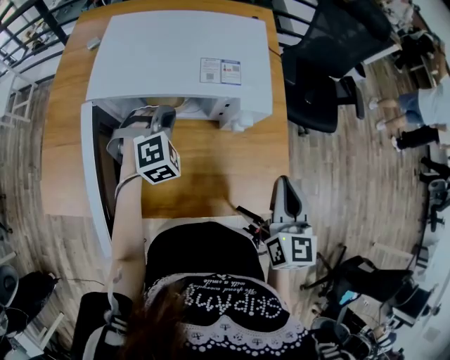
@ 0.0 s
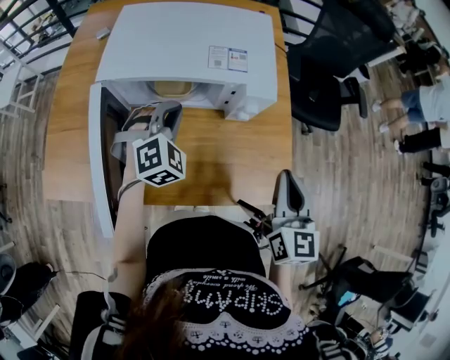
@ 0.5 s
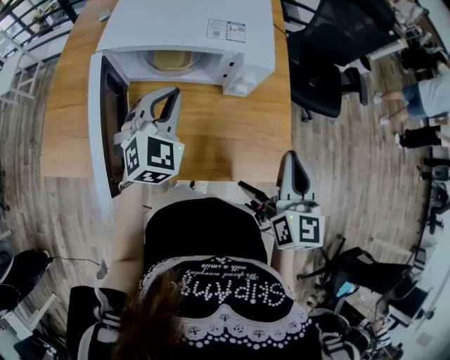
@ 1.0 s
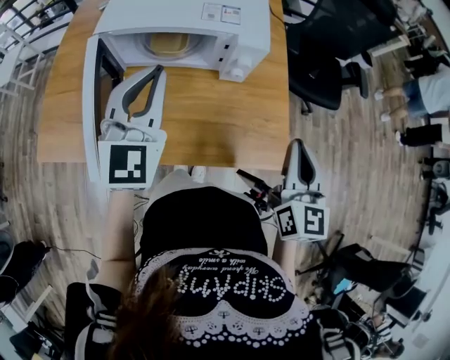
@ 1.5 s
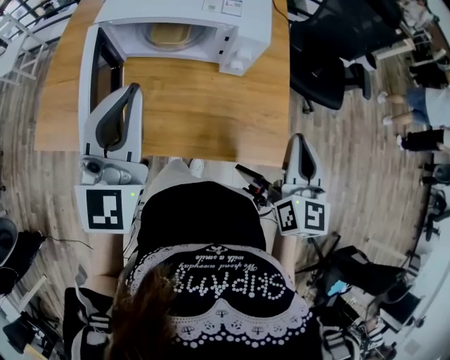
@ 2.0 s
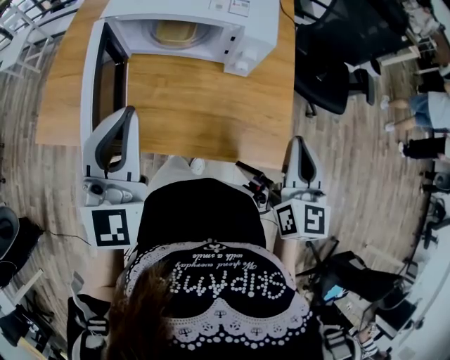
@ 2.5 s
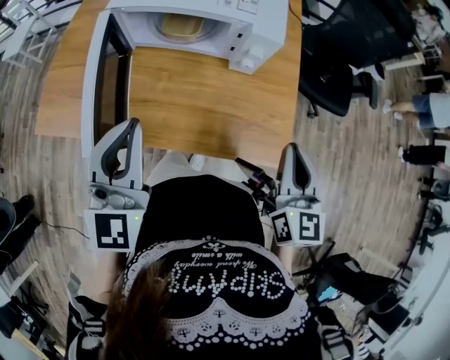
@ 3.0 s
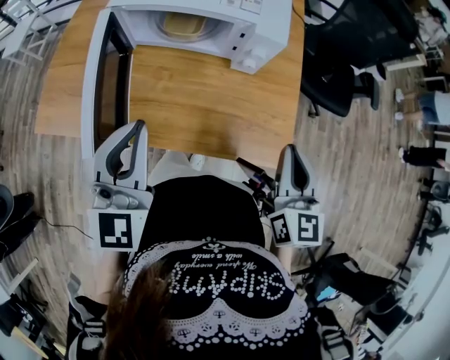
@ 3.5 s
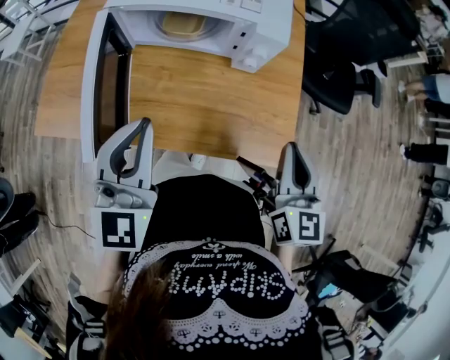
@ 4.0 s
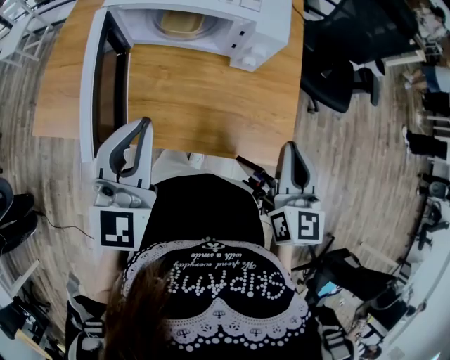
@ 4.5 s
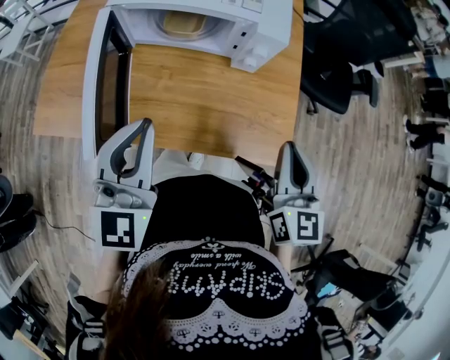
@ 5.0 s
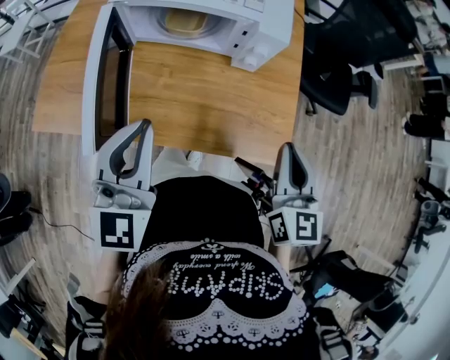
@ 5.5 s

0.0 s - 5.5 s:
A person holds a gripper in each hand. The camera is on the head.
0.0 s - 2.0 s: The left gripper travels upward and backward by roughly 30 cm, and angles its fingers upward, by roughly 50 degrees. The right gripper goes about 10 cm backward and to the right.
2.0 s - 3.5 s: The left gripper heads downward and backward, covering some 10 cm.
3.5 s - 5.5 s: Both grippers stay about where they are.

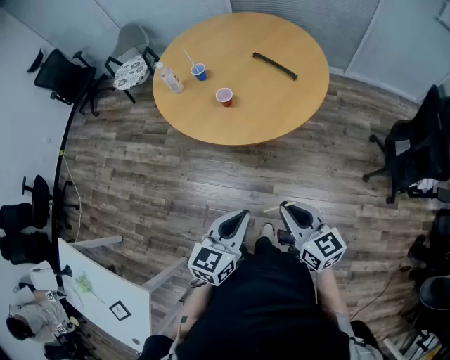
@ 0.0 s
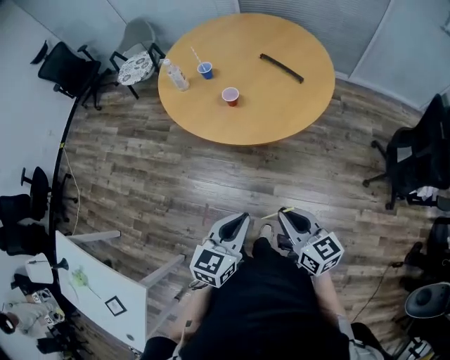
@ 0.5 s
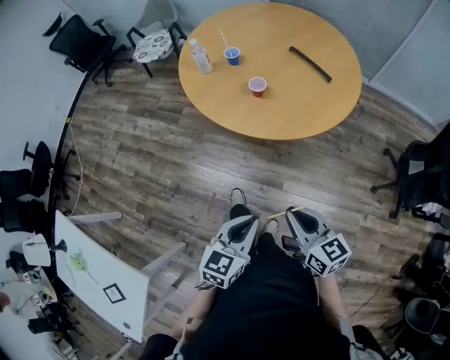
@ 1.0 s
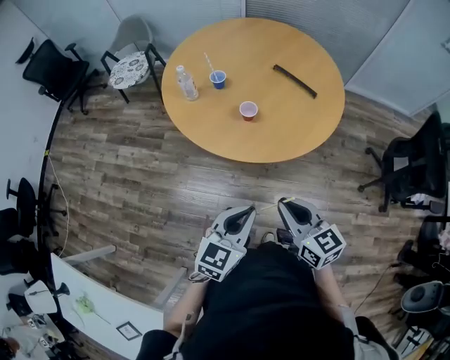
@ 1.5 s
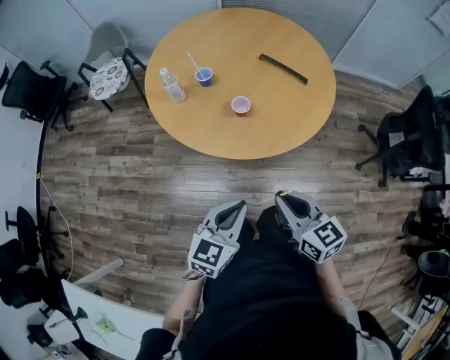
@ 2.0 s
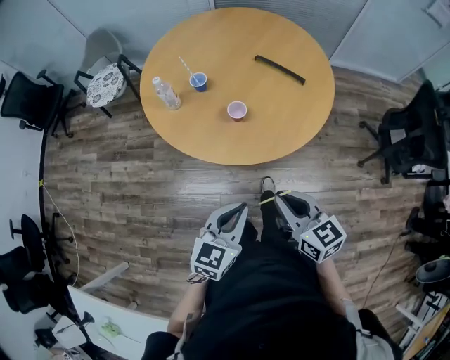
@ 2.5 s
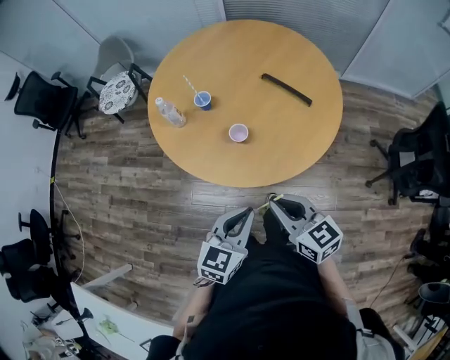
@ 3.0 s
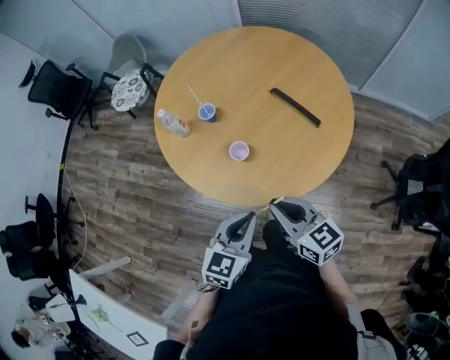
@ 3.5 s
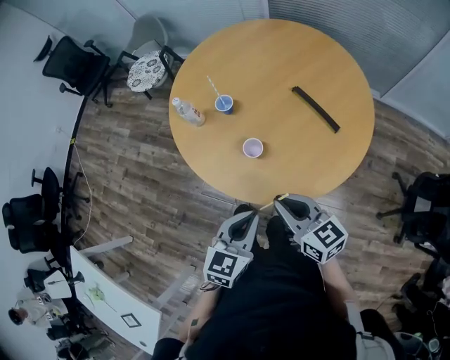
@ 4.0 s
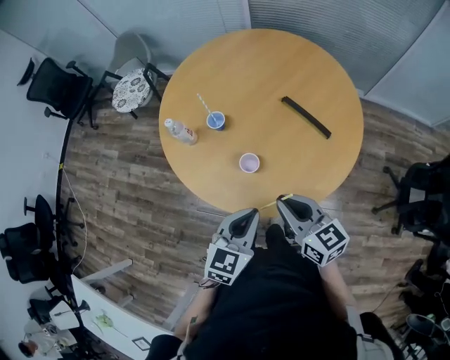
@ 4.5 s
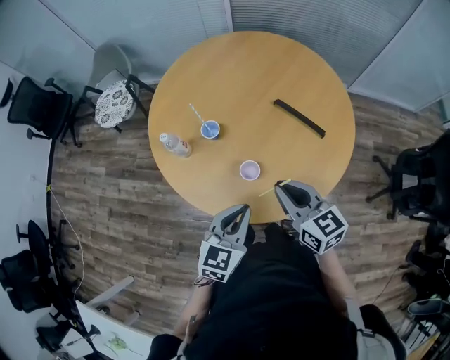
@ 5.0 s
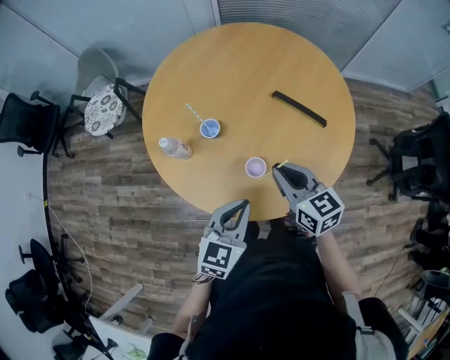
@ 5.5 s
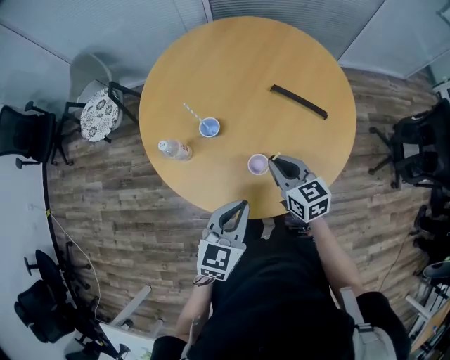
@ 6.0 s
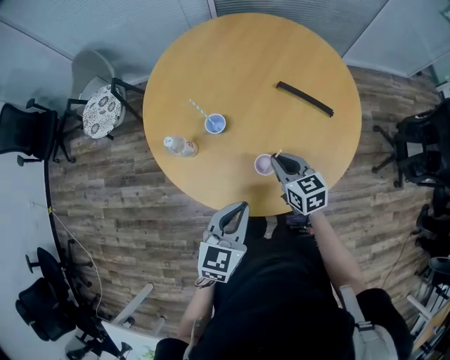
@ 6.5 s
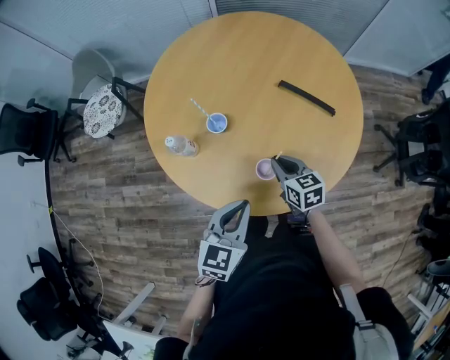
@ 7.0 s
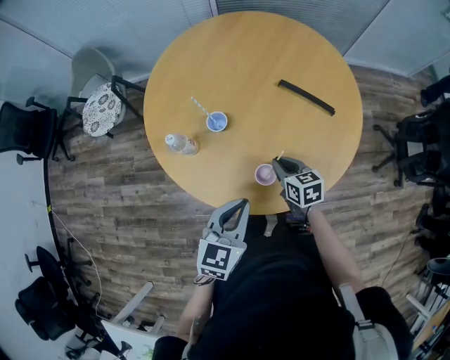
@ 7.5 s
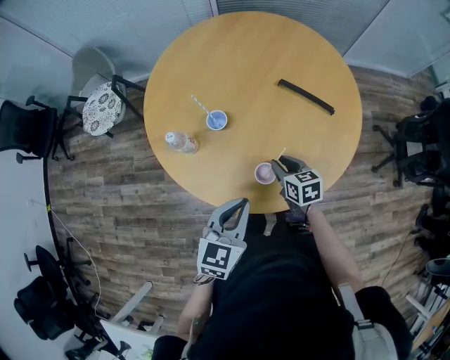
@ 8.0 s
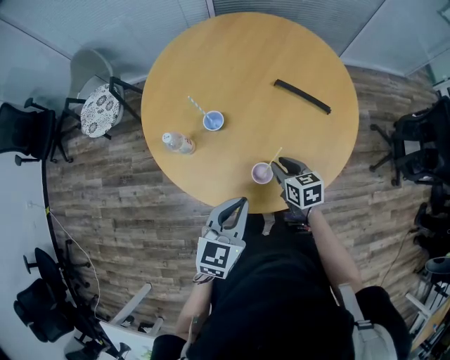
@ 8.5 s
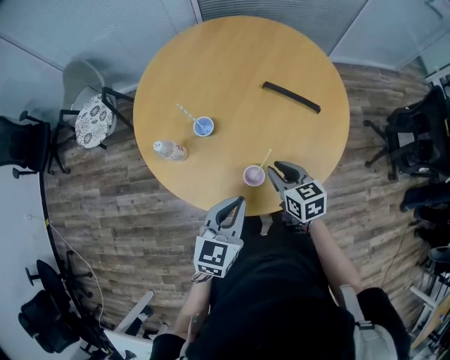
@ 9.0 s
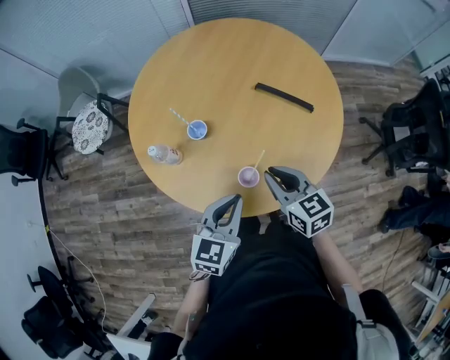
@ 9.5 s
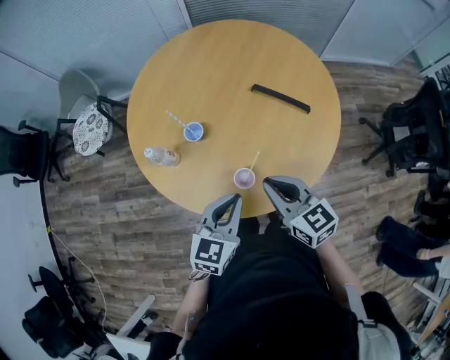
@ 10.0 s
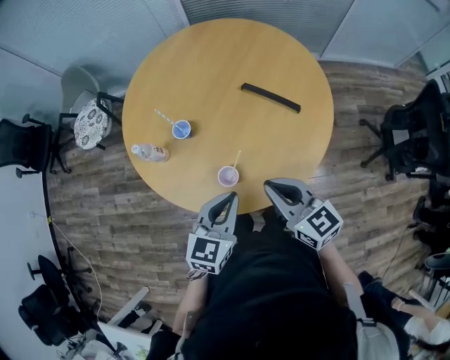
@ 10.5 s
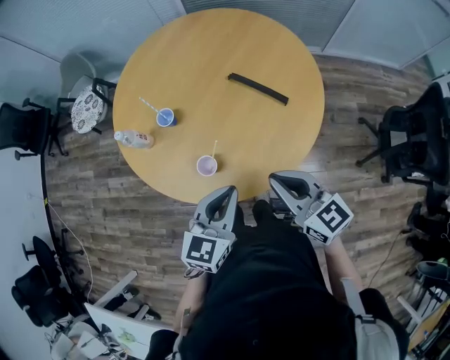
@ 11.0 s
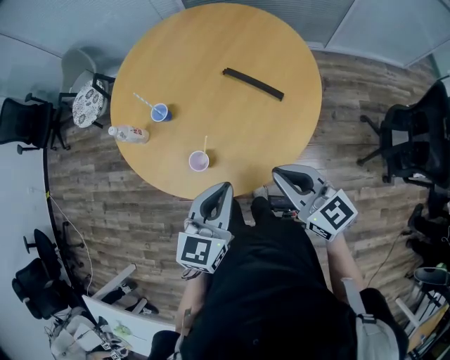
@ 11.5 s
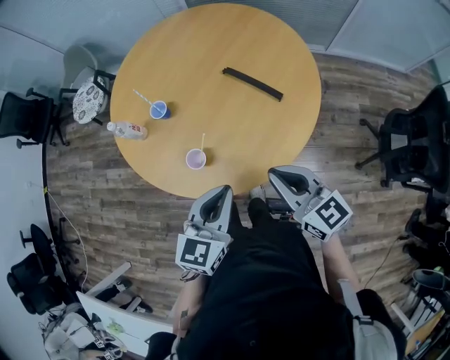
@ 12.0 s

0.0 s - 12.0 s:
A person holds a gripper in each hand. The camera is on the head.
0.0 s - 2.0 s: Both grippers move to the left and forward, approximately 20 cm.
2.0 s - 4.0 s: The right gripper moves forward, roughly 20 cm, and swivels roughly 20 degrees, while the left gripper goes about 20 cm forward and to the right, and rotates some 20 degrees.
4.0 s - 6.0 s: The left gripper moves approximately 15 cm, and changes its angle by roughly 20 degrees. Meanwhile the right gripper moves roughly 20 cm, and turns by some 30 degrees.
6.0 s - 8.0 s: The right gripper travels downward by roughly 10 cm.
8.0 s - 10.0 s: The right gripper heads upward, covering about 20 cm, and turns by roughly 20 degrees.
10.0 s - 12.0 s: The two grippers go about 15 cm to the right.

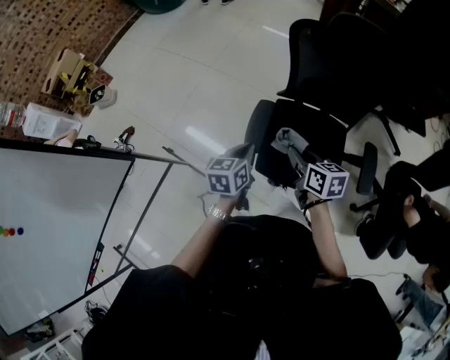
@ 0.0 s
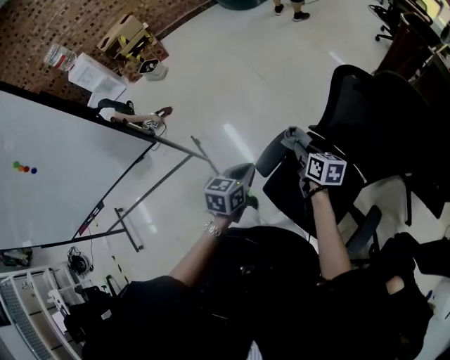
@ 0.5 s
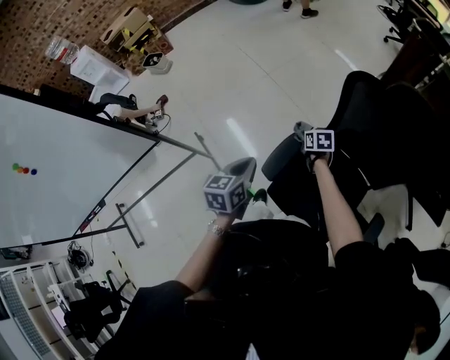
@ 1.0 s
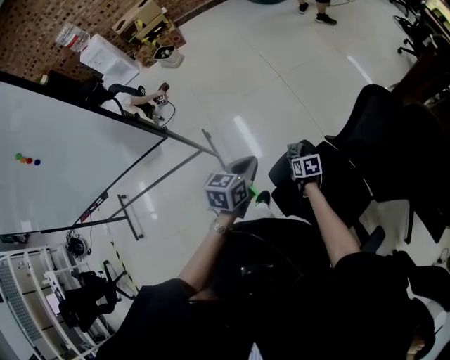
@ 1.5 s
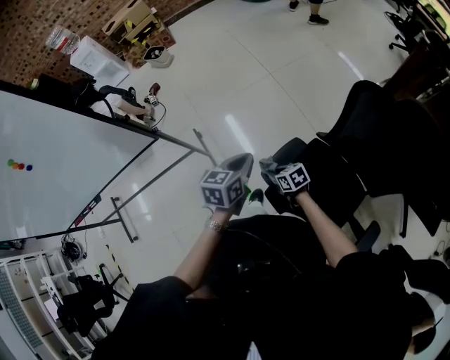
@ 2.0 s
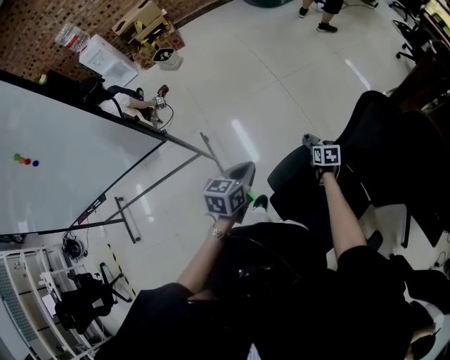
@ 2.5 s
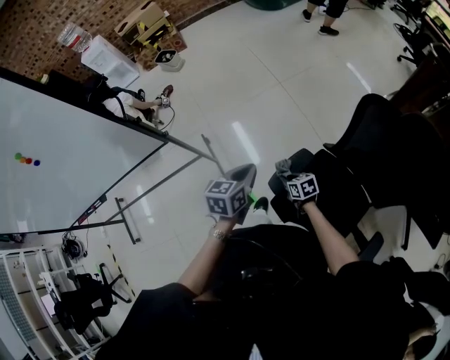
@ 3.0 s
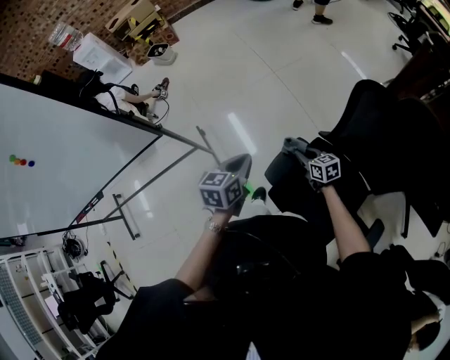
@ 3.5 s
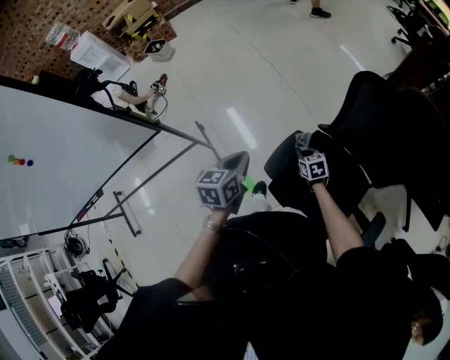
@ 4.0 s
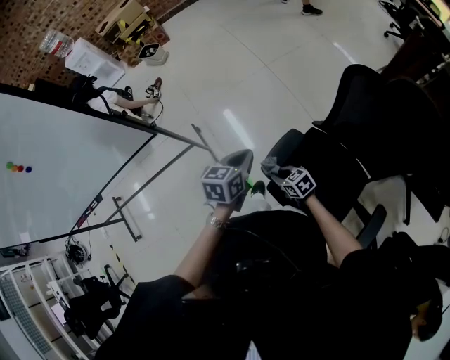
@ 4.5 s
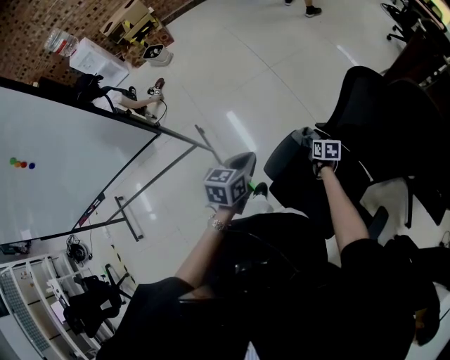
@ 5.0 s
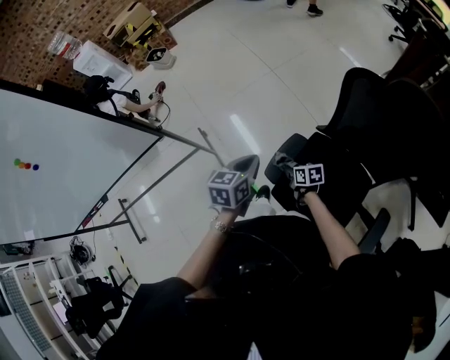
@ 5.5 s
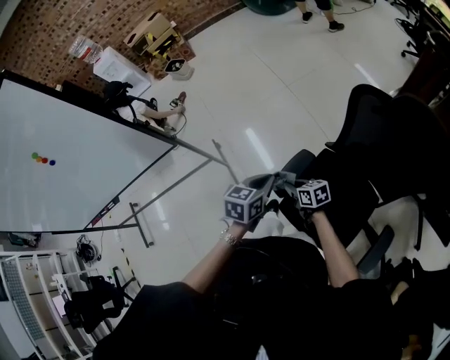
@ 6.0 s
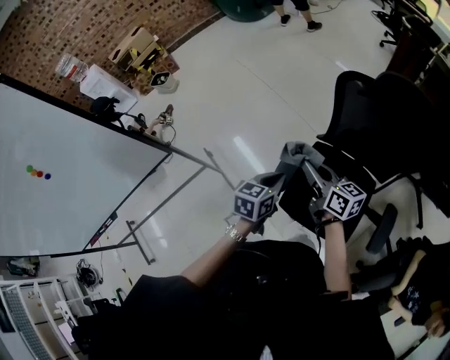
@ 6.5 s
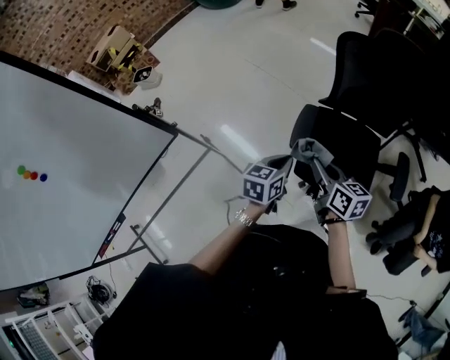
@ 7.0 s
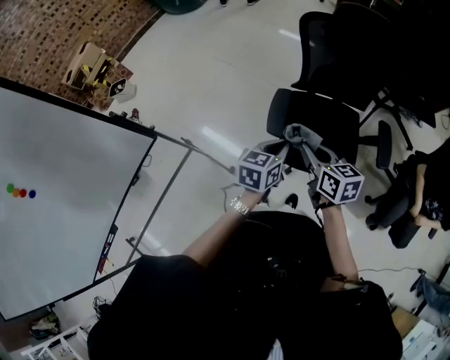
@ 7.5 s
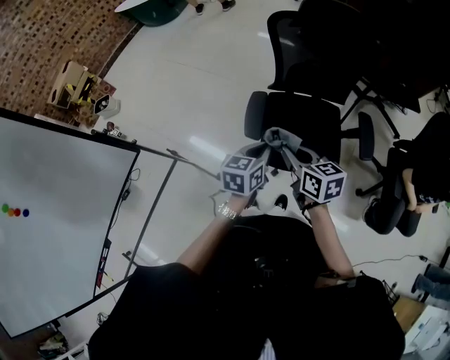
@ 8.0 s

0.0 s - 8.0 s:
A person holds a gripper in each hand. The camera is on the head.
0.0 s - 2.0 s: The right gripper is displaced downward by approximately 20 cm, and turns by approximately 60 degrees. The left gripper changes place by some 5 cm, and rotates roughly 20 degrees.
2.0 s - 4.0 s: The right gripper goes left and right, about 20 cm each way, reversing 2 times, and rotates roughly 30 degrees.
4.0 s - 6.0 s: The right gripper goes left and right, some 20 cm each way, reversing 2 times, and swivels roughly 30 degrees. Meanwhile the left gripper goes about 5 cm to the right.
6.0 s - 8.0 s: The right gripper moves upward, roughly 20 cm, and rotates approximately 50 degrees. Meanwhile the left gripper shifts by roughly 15 cm, and changes its angle by about 30 degrees.

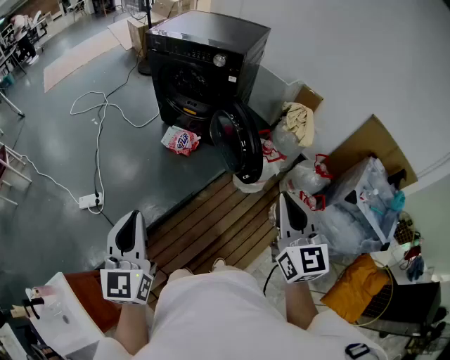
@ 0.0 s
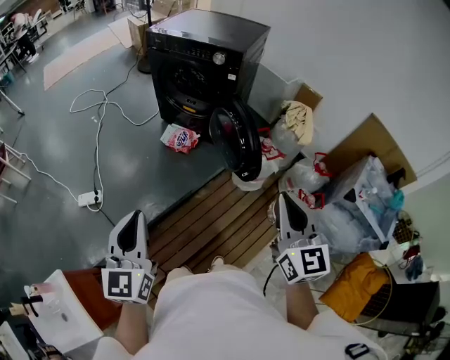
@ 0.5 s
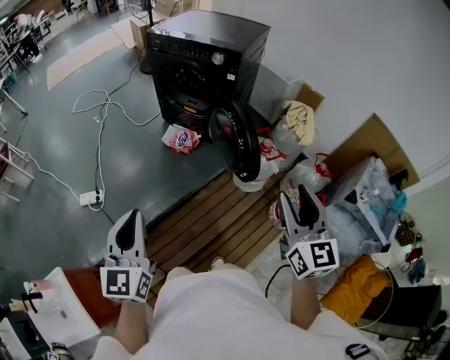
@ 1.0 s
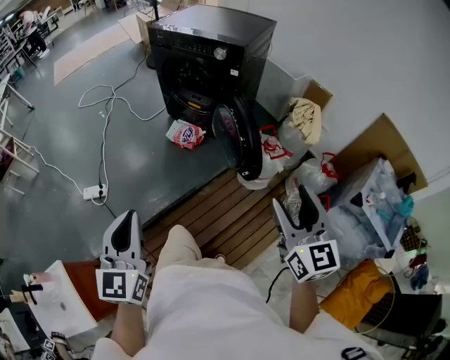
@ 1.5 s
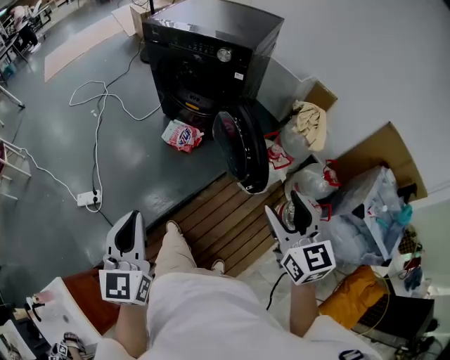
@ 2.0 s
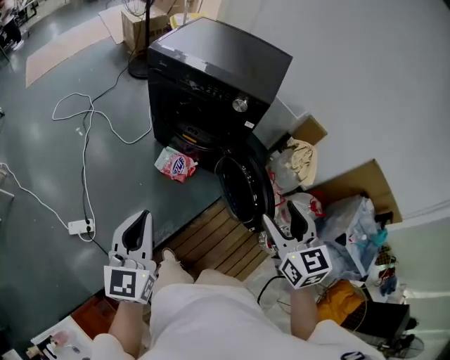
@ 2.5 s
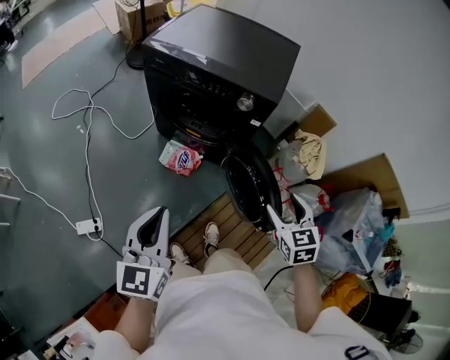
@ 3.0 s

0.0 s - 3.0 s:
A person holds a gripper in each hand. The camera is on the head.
0.0 s - 1.5 s: The right gripper changes place by approximately 5 cm, and opens.
1.5 s - 3.0 s: Both grippers move forward, roughly 35 cm. The right gripper angles its fingers downward, by roughly 30 degrees.
